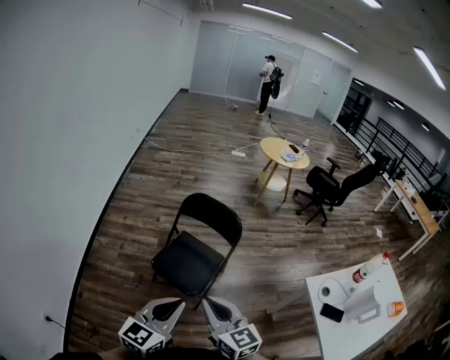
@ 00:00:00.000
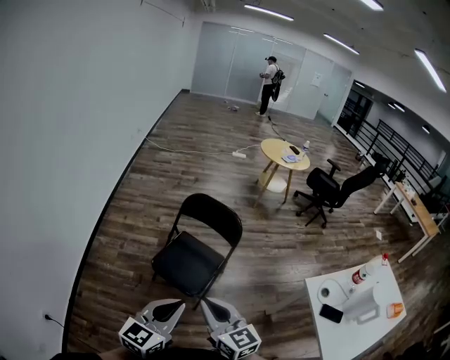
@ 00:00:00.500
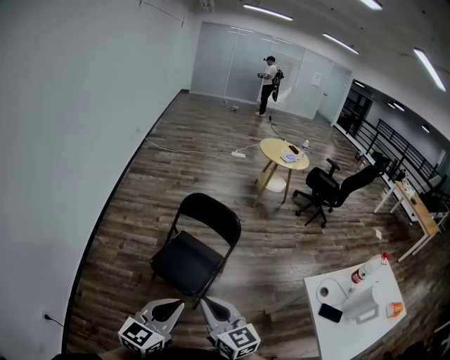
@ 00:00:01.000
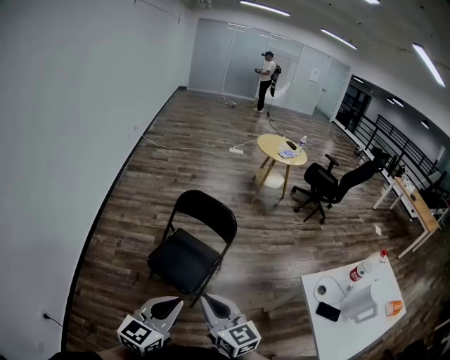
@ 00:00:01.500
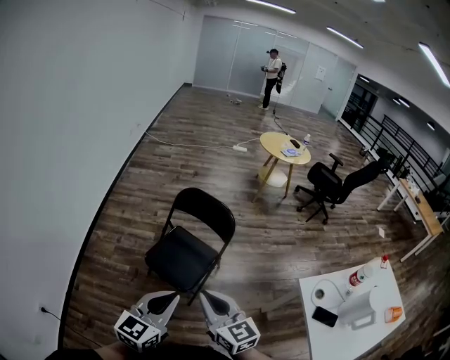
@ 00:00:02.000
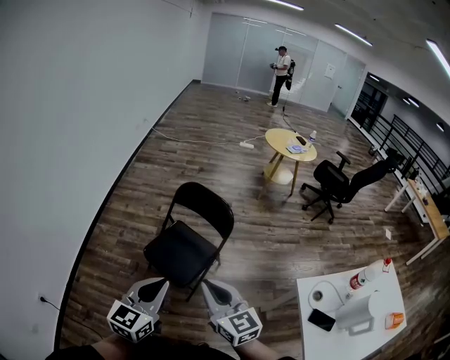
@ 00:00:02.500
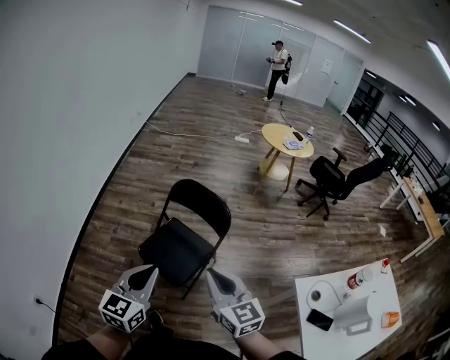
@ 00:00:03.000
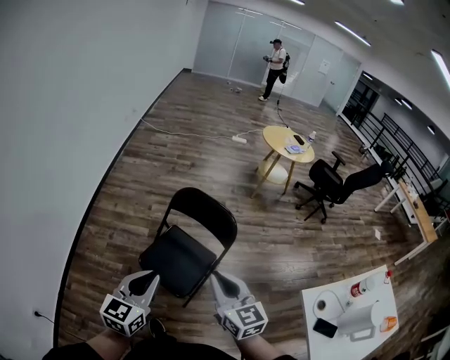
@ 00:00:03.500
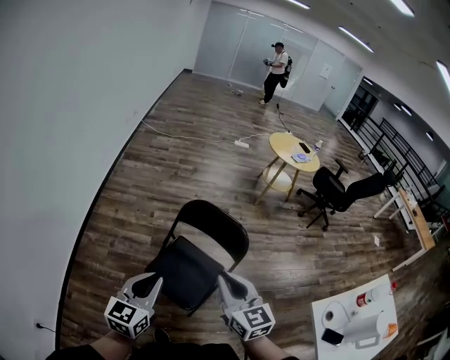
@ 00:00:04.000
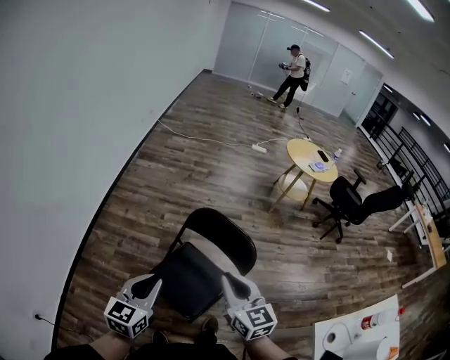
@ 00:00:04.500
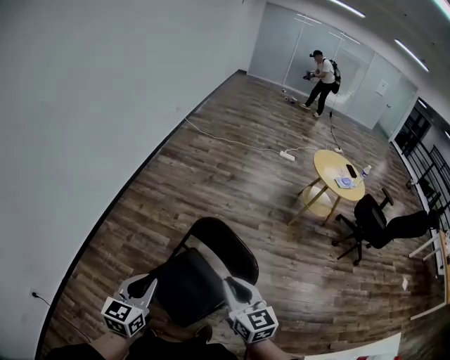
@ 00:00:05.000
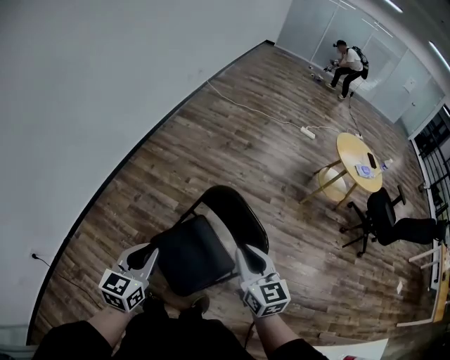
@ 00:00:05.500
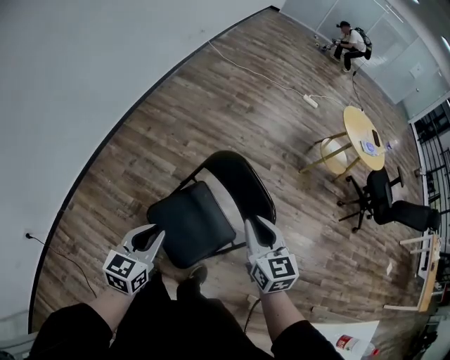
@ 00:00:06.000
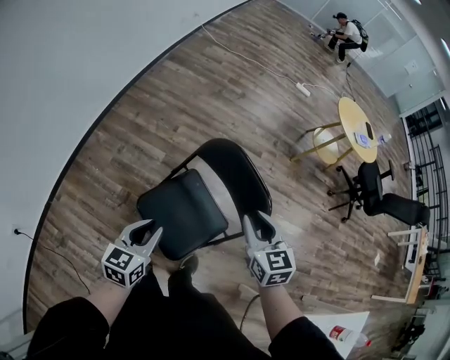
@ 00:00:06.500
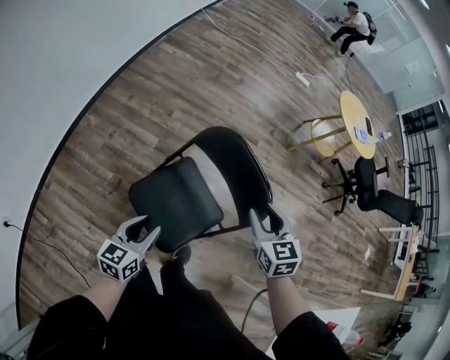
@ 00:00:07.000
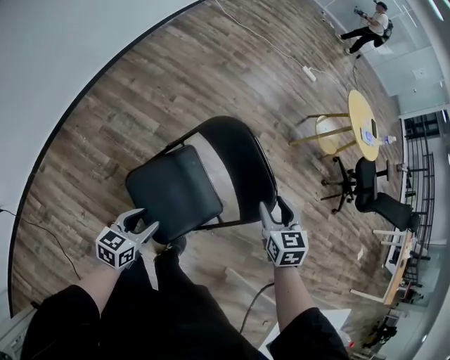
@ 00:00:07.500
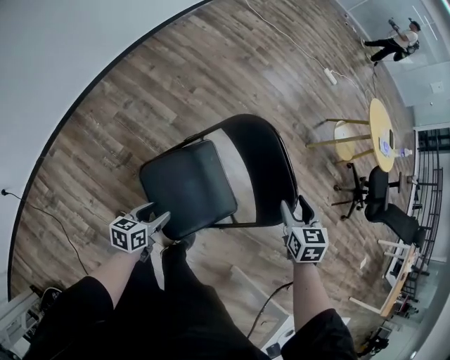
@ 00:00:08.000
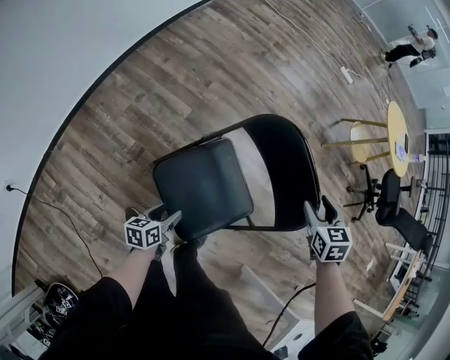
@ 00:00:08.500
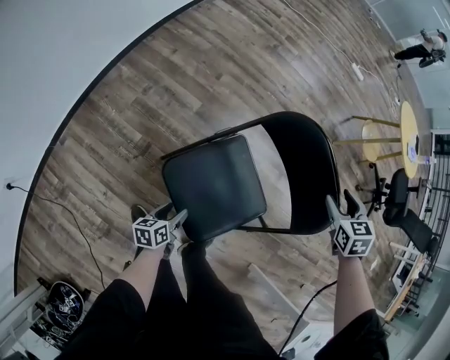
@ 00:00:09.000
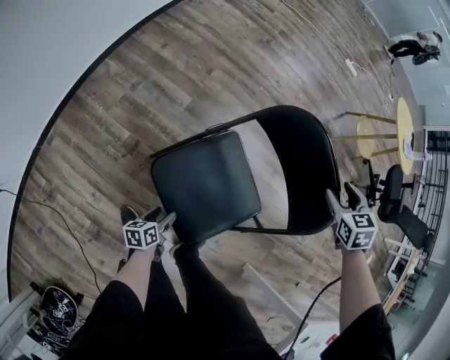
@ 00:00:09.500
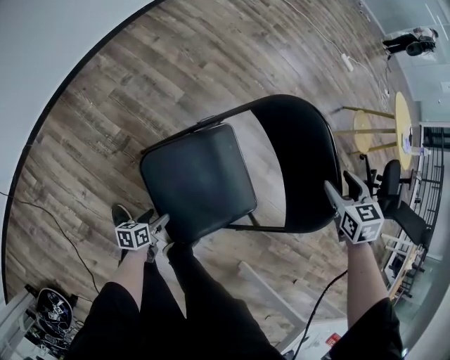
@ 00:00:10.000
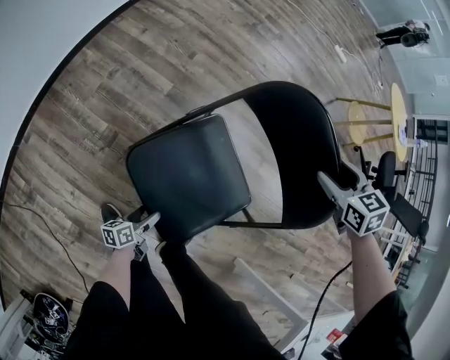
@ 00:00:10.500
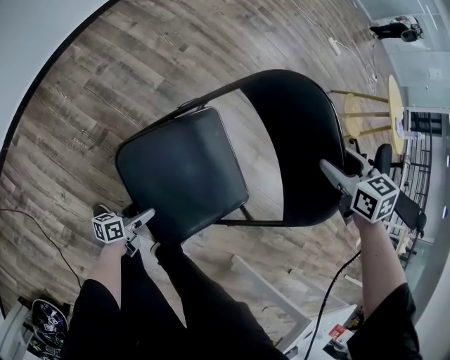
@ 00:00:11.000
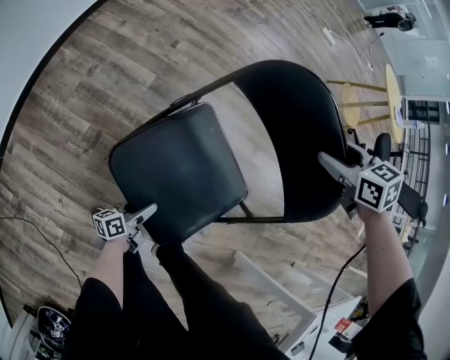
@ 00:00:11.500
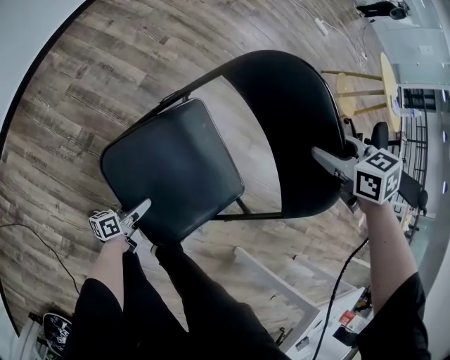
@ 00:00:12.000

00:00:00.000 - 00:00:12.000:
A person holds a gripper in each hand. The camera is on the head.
00:00:00.000 - 00:00:02.000: The right gripper goes roughly 5 cm to the right.
00:00:02.000 - 00:00:04.000: The right gripper is displaced forward by approximately 20 cm. The left gripper moves forward and to the left, some 25 cm.
00:00:04.000 - 00:00:06.000: The left gripper is displaced downward and forward by roughly 15 cm, and turns by some 20 degrees. The right gripper moves forward, downward and to the right, some 20 cm.
00:00:06.000 - 00:00:08.000: The right gripper heads downward, to the right and forward, covering some 20 cm, swivels approximately 30 degrees, and opens up; the left gripper shifts approximately 25 cm downward, changes its angle by roughly 30 degrees, and opens.
00:00:08.000 - 00:00:10.000: The left gripper travels downward by roughly 25 cm, while the right gripper shifts approximately 10 cm forward and downward.
00:00:10.000 - 00:00:12.000: The left gripper shifts some 5 cm forward, and changes its angle by about 30 degrees.

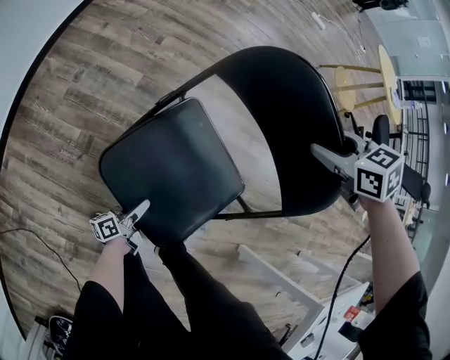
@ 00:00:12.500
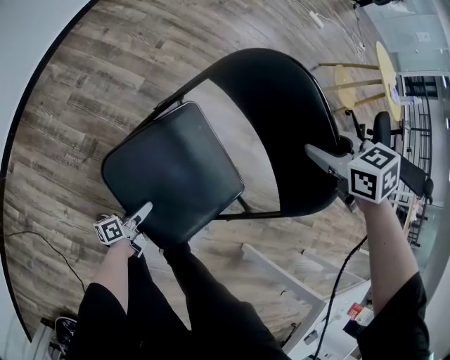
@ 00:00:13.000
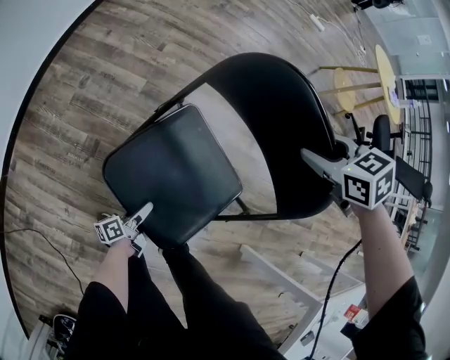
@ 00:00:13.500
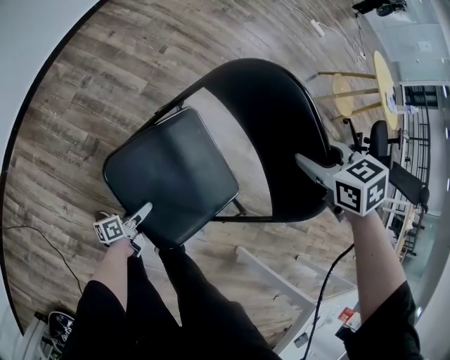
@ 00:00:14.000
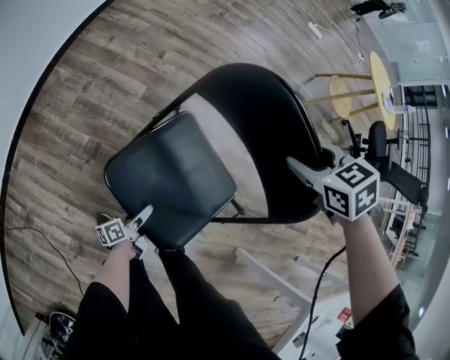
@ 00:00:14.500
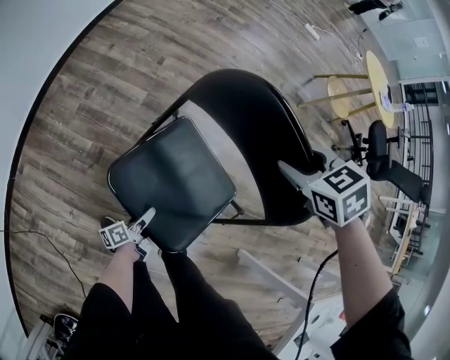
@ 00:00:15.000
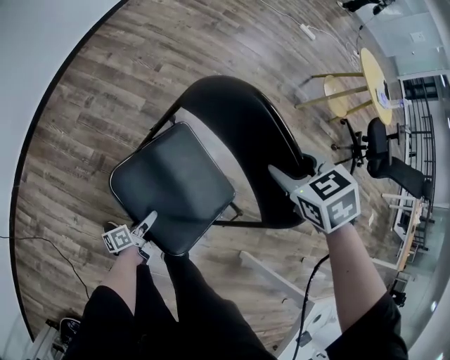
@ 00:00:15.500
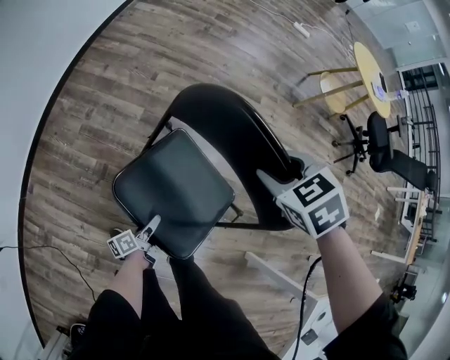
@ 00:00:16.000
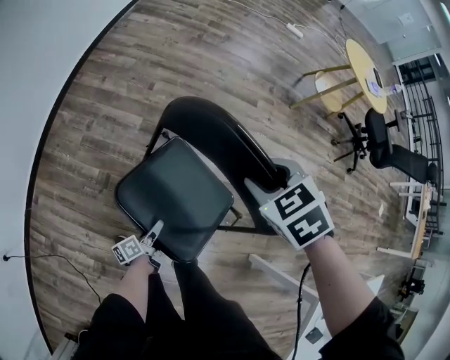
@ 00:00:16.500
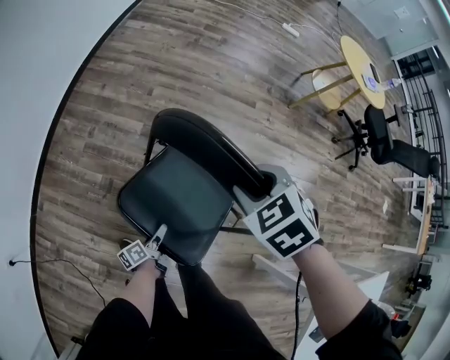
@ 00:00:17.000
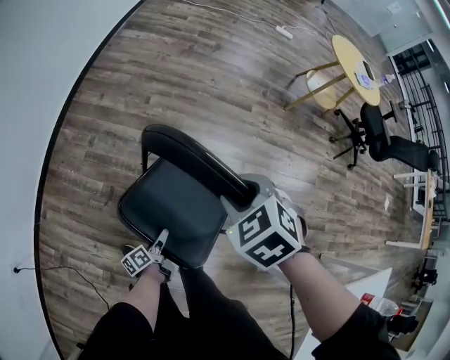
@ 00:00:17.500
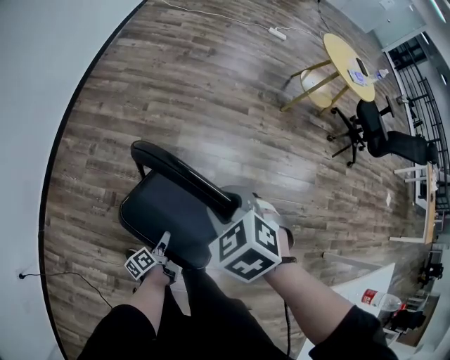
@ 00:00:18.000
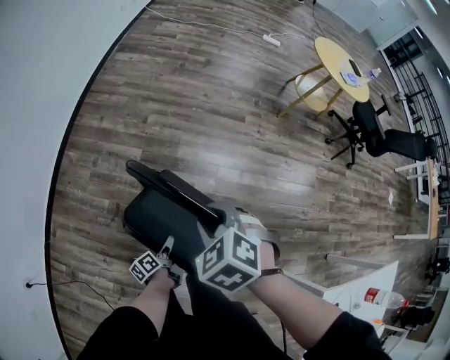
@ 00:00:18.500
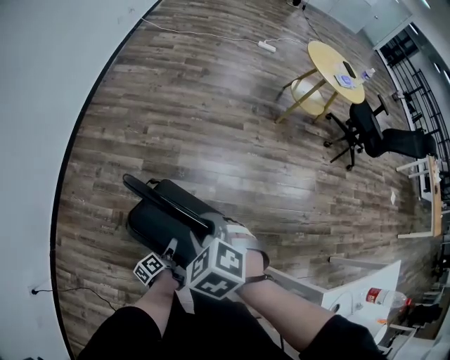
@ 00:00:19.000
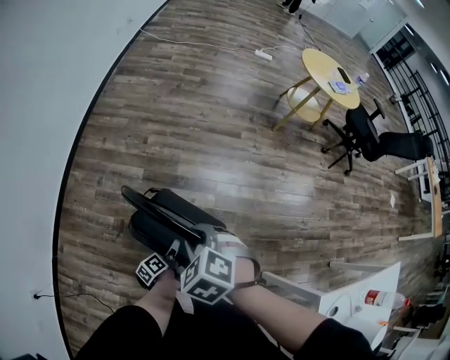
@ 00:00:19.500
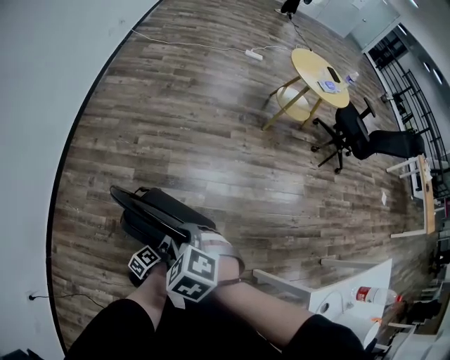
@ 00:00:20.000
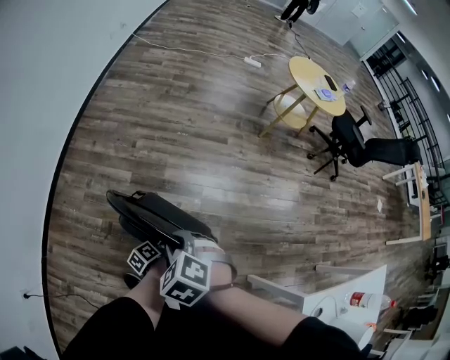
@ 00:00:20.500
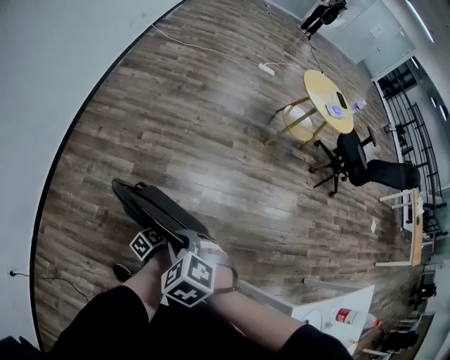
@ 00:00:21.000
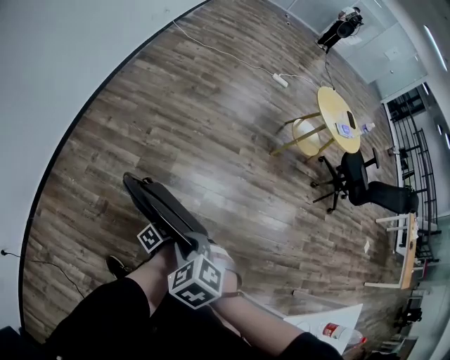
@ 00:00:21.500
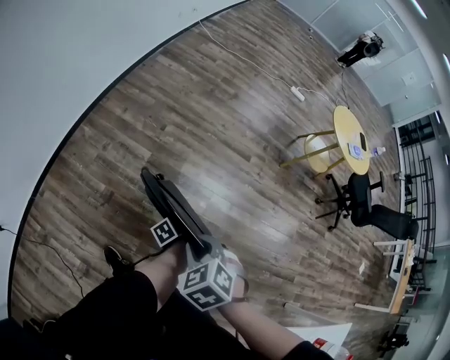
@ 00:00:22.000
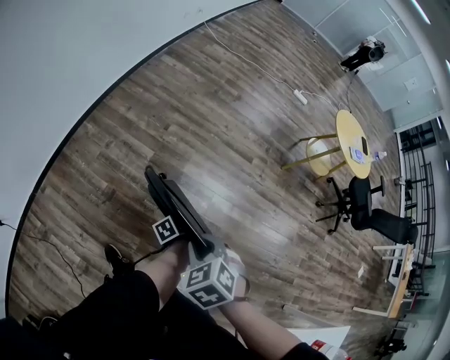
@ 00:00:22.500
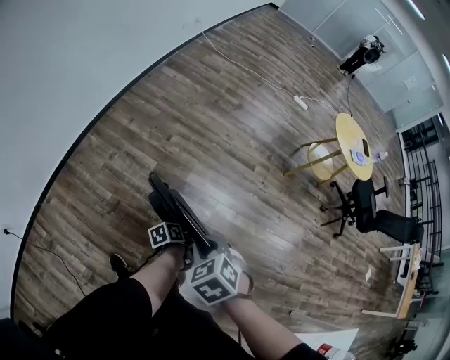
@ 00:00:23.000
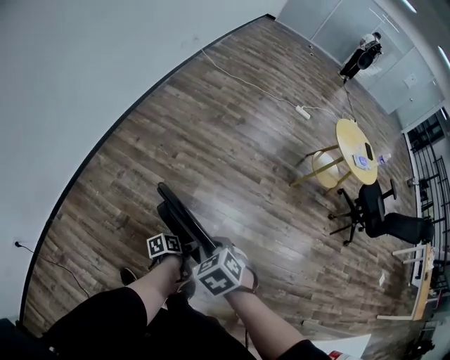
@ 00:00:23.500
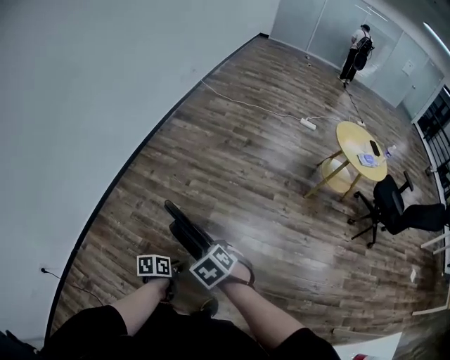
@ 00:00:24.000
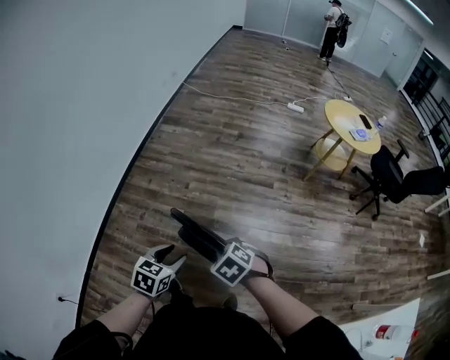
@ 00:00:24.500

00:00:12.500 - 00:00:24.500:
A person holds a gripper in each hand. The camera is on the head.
00:00:12.500 - 00:00:14.500: The right gripper changes place by roughly 5 cm.
00:00:14.500 - 00:00:16.500: The right gripper moves approximately 10 cm; the left gripper goes roughly 5 cm upward.
00:00:16.500 - 00:00:18.500: The right gripper moves backward and to the left, approximately 10 cm. Meanwhile the left gripper goes about 5 cm upward.
00:00:18.500 - 00:00:20.500: The left gripper is displaced forward, upward and to the right by roughly 10 cm.
00:00:20.500 - 00:00:22.500: The left gripper is displaced to the right by roughly 5 cm.
00:00:22.500 - 00:00:24.500: The left gripper is displaced upward and to the left by some 25 cm, and twists approximately 80 degrees clockwise, seen from behind.

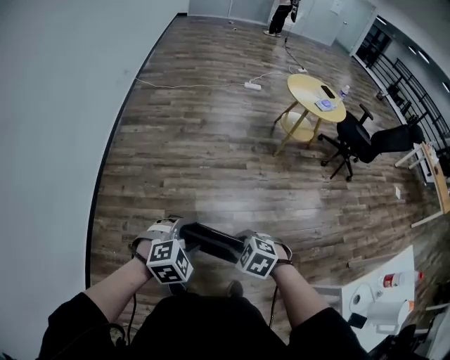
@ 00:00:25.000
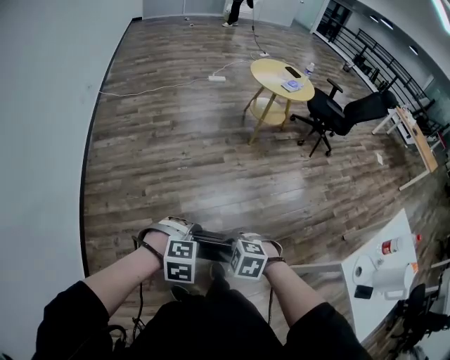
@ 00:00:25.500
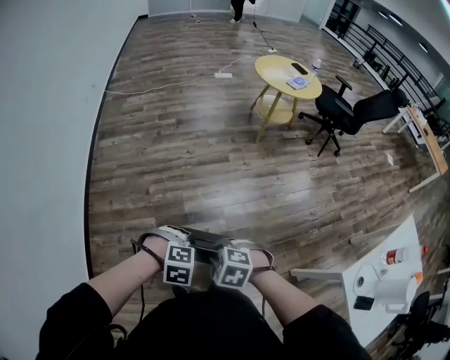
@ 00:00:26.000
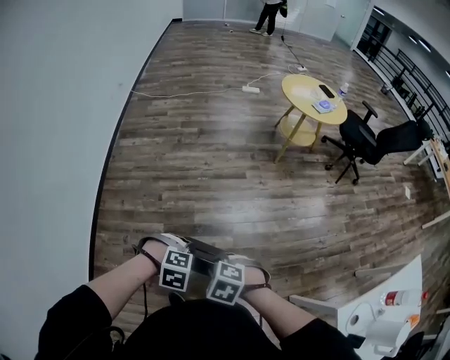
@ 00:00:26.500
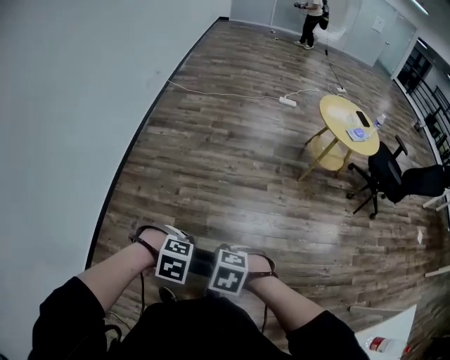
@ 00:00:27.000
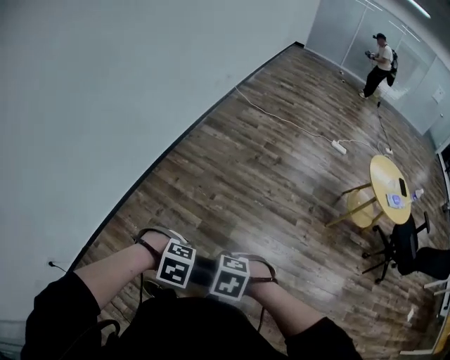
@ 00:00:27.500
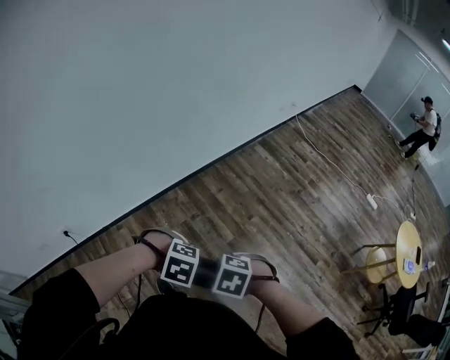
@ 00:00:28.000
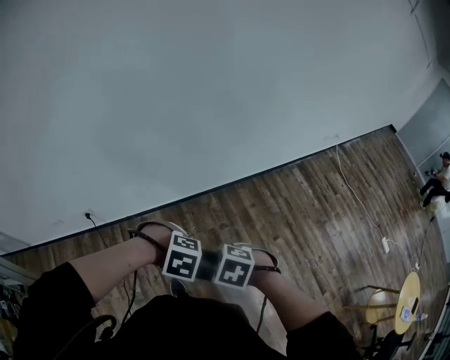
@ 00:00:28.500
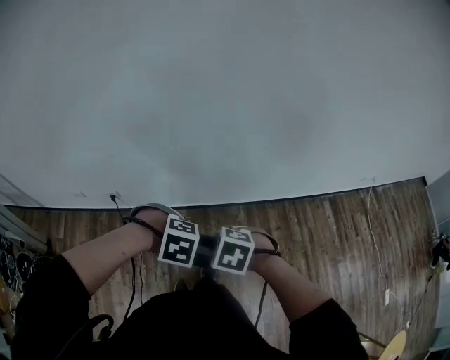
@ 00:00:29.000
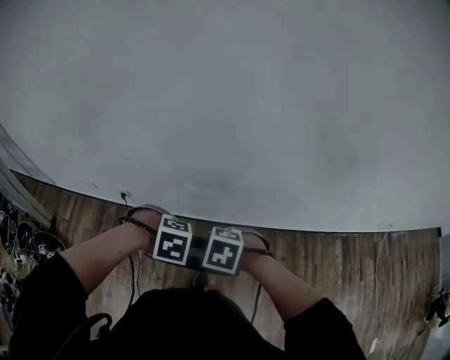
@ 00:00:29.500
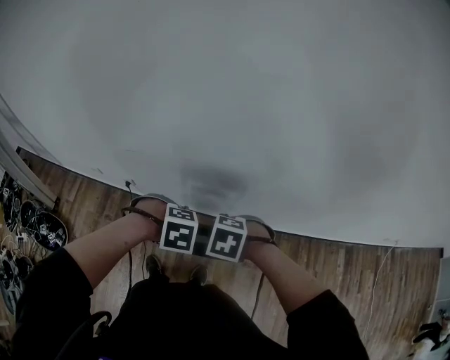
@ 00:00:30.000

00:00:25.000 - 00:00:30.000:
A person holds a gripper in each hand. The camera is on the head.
00:00:25.000 - 00:00:27.500: The left gripper moves approximately 10 cm, rotates some 30 degrees, and closes up. Meanwhile the right gripper changes place by some 10 cm, and rotates roughly 40 degrees.
00:00:27.500 - 00:00:30.000: The pair of grippers is taken some 60 cm. The right gripper rotates around the line of its fingers by roughly 70 degrees, counterclockwise from behind, while the left gripper rolls counterclockwise, seen from behind, by some 80 degrees.
